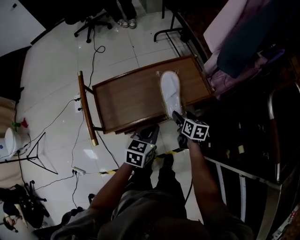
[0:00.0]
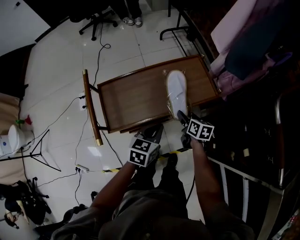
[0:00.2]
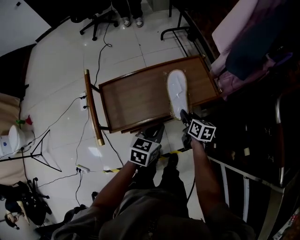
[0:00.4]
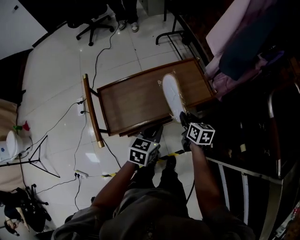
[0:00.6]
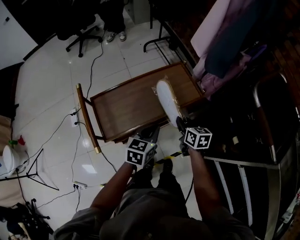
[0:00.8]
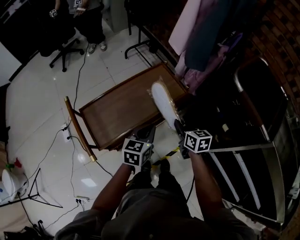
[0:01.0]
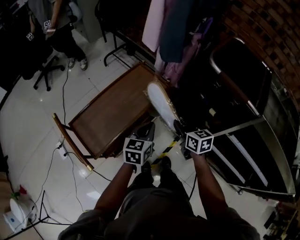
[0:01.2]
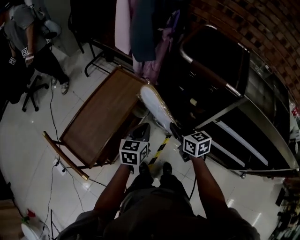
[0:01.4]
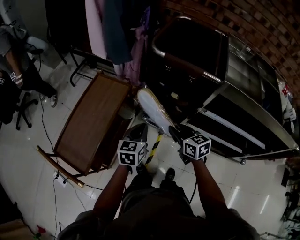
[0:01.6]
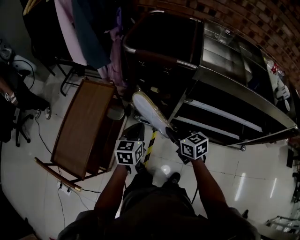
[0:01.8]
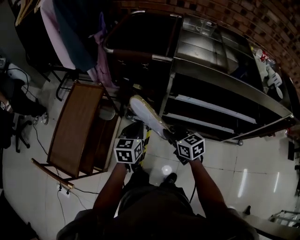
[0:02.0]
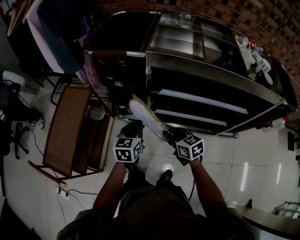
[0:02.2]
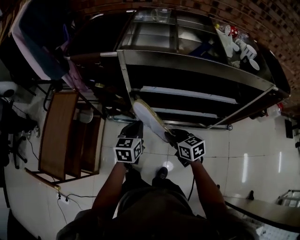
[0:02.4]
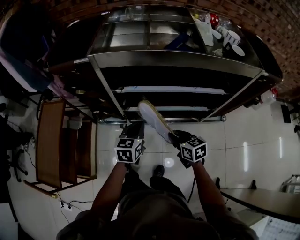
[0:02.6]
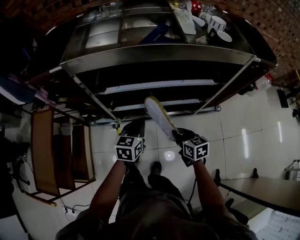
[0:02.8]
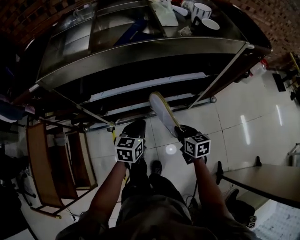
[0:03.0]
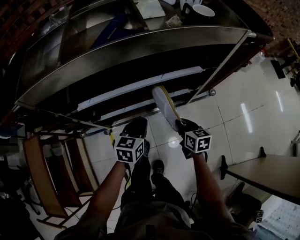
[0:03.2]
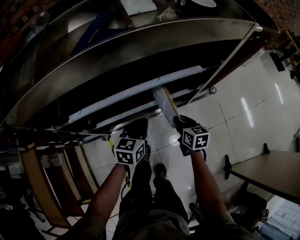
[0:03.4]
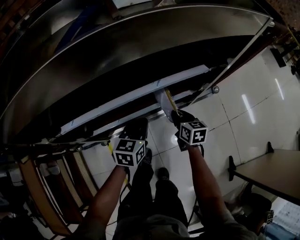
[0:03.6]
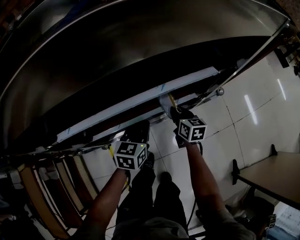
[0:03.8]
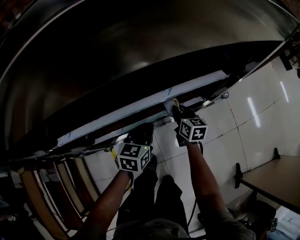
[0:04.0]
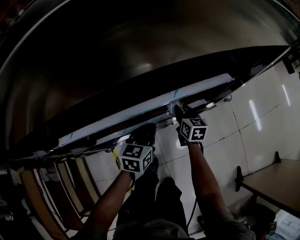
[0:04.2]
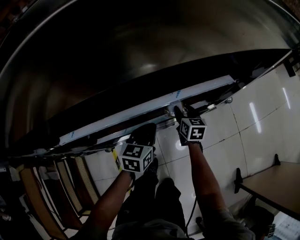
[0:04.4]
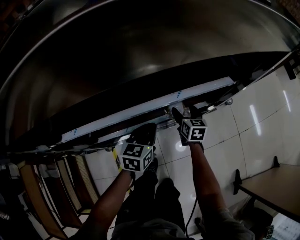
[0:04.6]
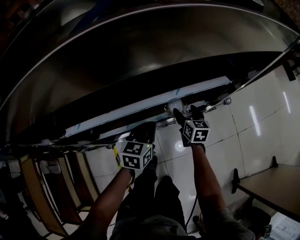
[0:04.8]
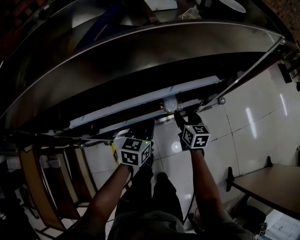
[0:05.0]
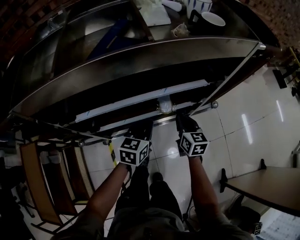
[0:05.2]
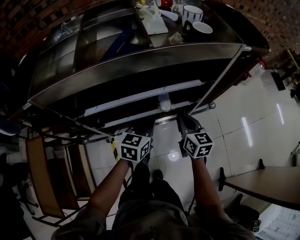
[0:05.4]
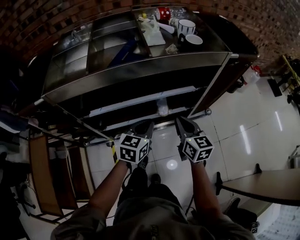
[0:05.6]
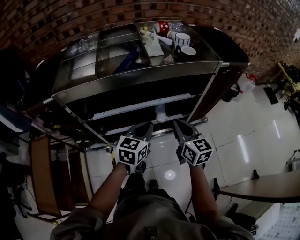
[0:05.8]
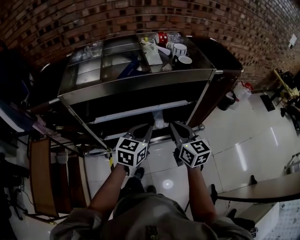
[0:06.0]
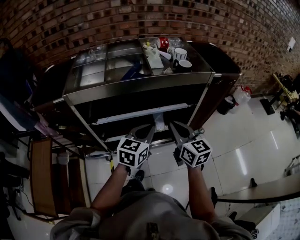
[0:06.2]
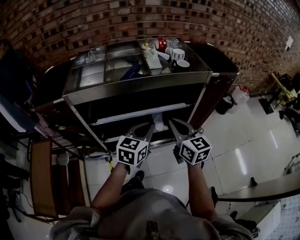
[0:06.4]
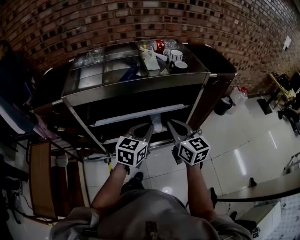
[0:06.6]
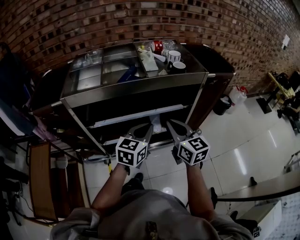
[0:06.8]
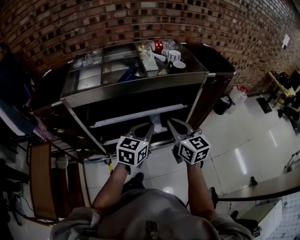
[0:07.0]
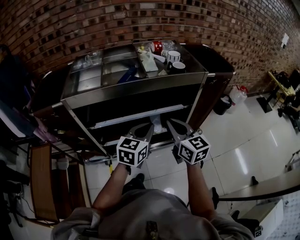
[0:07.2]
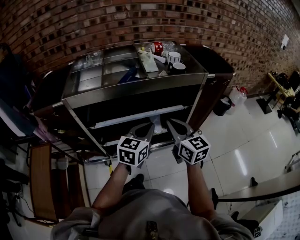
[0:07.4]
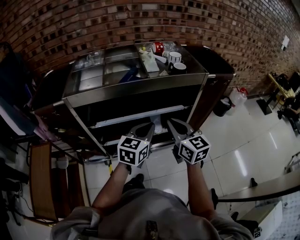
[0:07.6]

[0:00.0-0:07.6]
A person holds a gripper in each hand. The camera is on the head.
0:00.0 to 0:01.6: The left gripper changes place by about 20 cm, and turns by about 40 degrees. Meanwhile the right gripper changes place by approximately 35 cm, changes its angle by some 30 degrees, and closes up.
0:01.6 to 0:03.0: Both grippers are carried some 50 cm. The left gripper changes its angle by about 40 degrees. Meanwhile the right gripper swivels about 40 degrees.
0:03.0 to 0:04.6: The left gripper shifts about 25 cm downward and forward. The right gripper moves forward and downward, about 30 cm, swivels roughly 20 degrees, and opens its fingers.
0:04.6 to 0:06.0: Both grippers move upward and backward, about 50 cm. The right gripper changes its angle by some 30 degrees, and closes its fingers.
0:06.0 to 0:07.6: There are only small adjustments of the grippers.

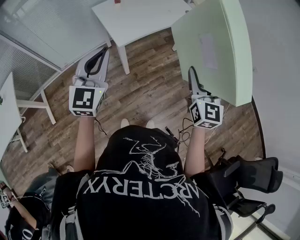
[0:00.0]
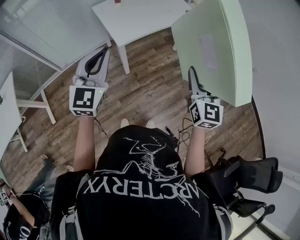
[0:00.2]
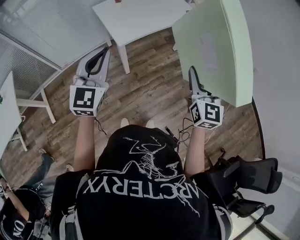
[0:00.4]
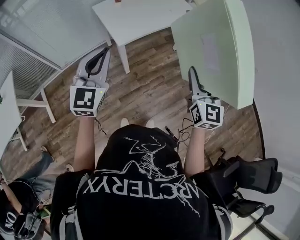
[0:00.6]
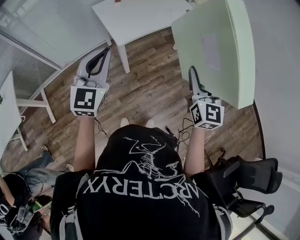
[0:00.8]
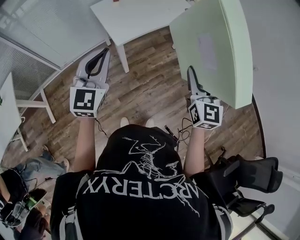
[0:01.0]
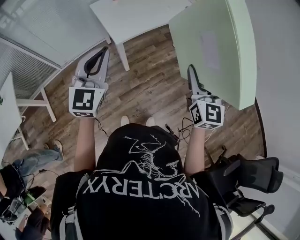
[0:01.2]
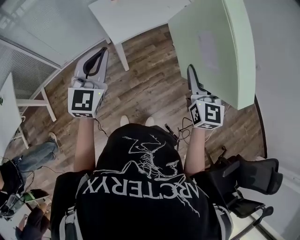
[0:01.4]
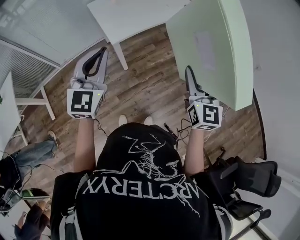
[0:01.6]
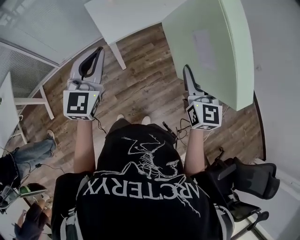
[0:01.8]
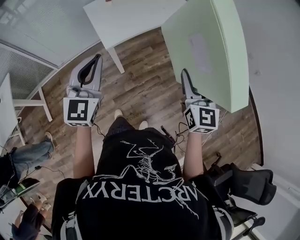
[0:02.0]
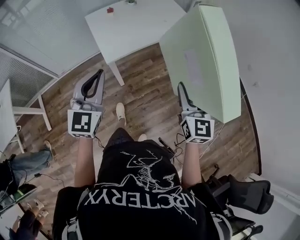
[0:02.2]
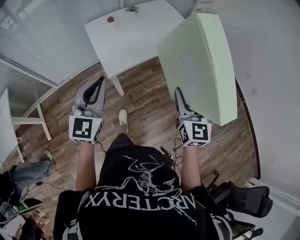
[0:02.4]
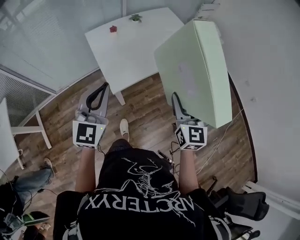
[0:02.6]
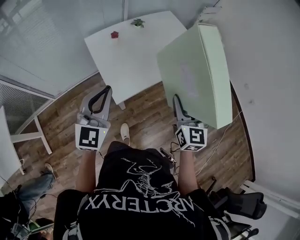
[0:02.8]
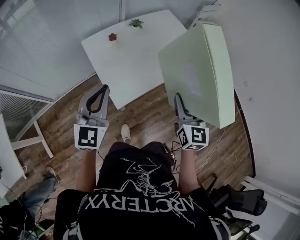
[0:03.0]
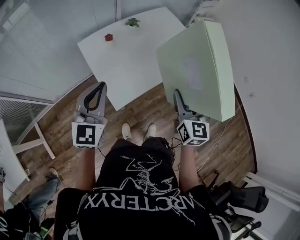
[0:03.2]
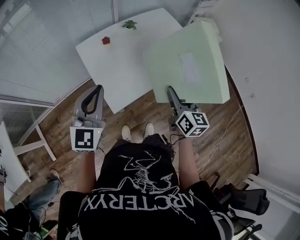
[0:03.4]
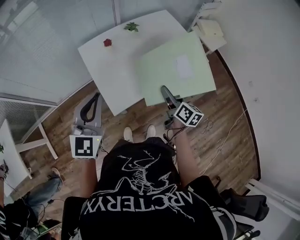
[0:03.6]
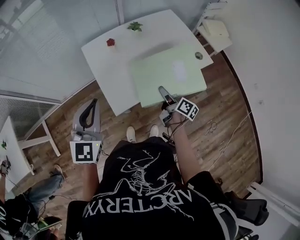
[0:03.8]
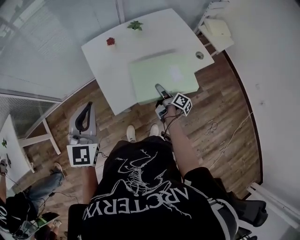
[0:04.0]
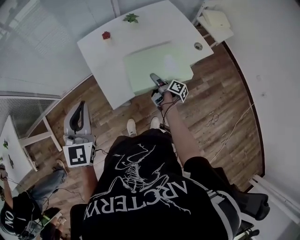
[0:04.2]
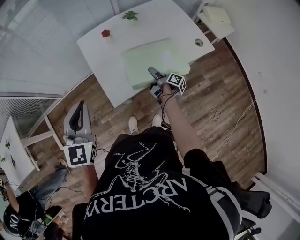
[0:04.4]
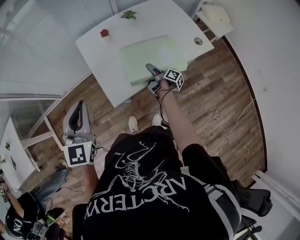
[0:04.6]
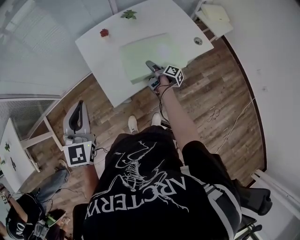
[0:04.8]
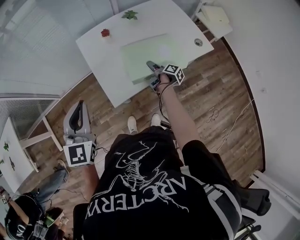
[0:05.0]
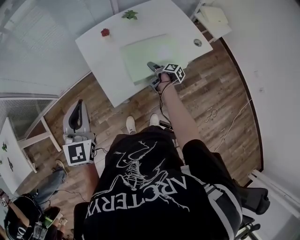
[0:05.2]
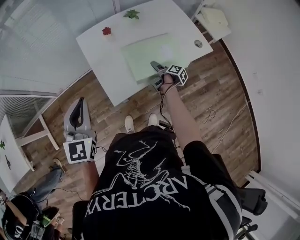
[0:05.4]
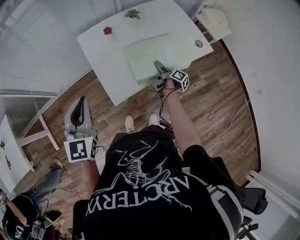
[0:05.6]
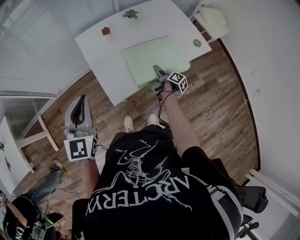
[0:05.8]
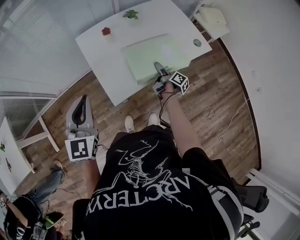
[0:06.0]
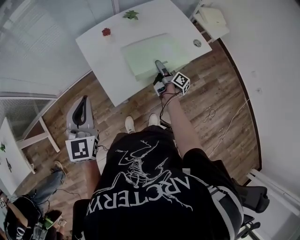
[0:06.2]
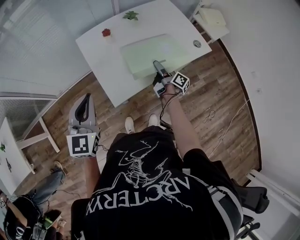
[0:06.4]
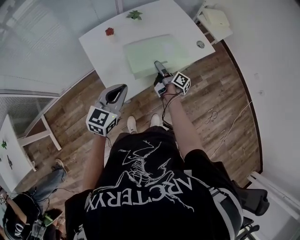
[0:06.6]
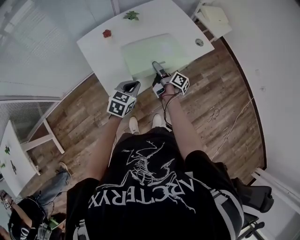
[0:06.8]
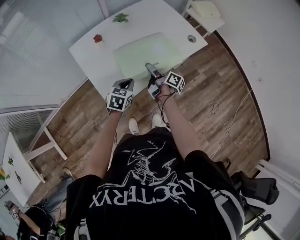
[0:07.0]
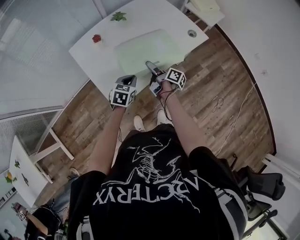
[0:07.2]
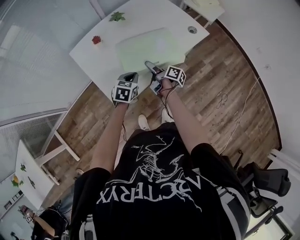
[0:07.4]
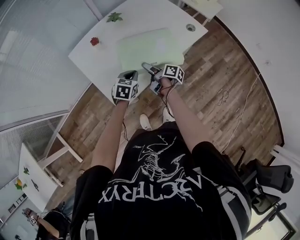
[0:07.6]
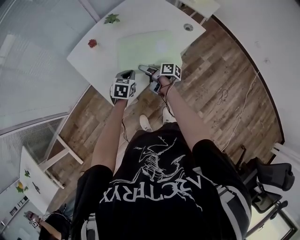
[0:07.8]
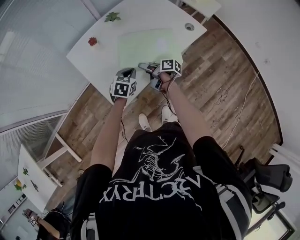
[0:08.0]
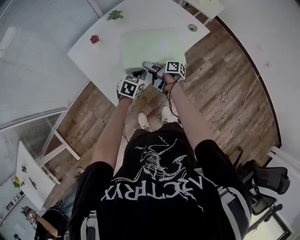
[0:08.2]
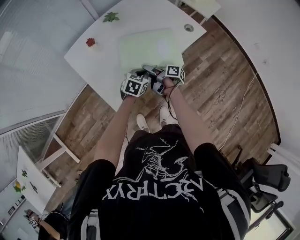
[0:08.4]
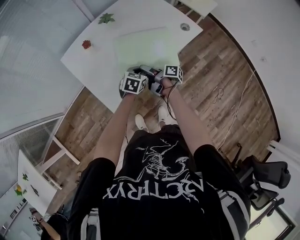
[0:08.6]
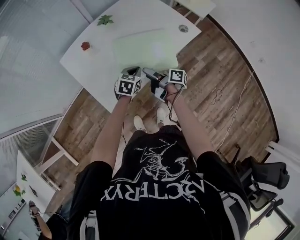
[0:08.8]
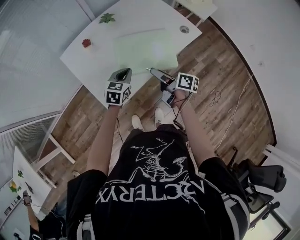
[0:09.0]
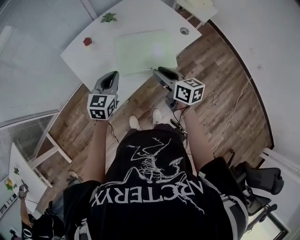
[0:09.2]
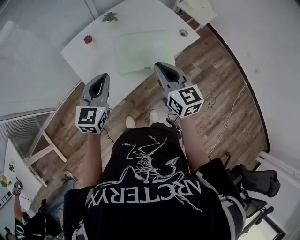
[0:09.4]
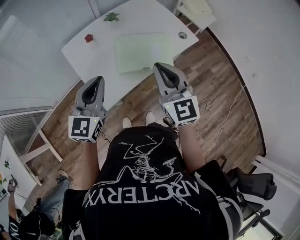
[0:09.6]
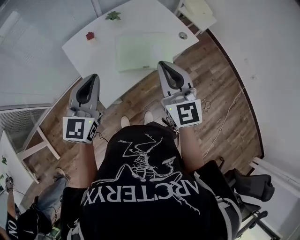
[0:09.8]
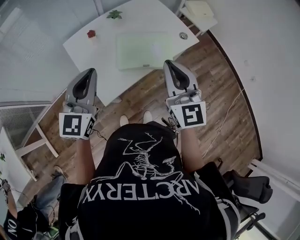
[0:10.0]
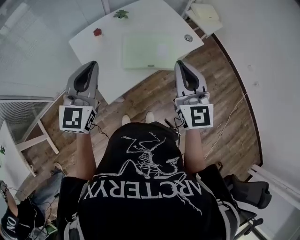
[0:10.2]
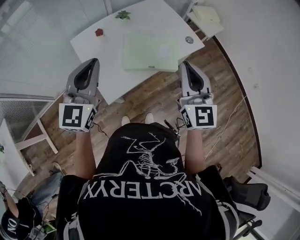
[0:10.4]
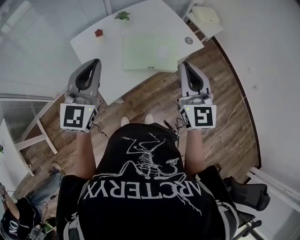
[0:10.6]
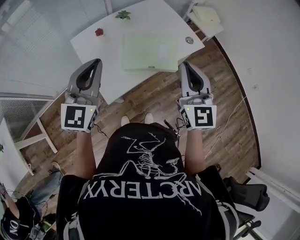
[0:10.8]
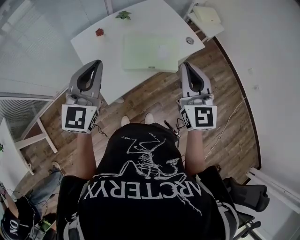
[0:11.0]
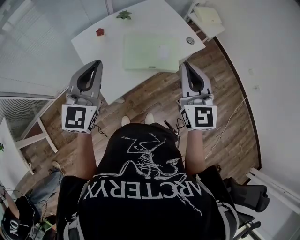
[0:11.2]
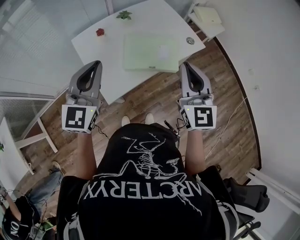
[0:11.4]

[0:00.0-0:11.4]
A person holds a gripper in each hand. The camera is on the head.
0:00.0 to 0:01.4: The grippers make only small movements.
0:01.4 to 0:02.8: The grippers both shift forward by roughly 25 cm.
0:02.8 to 0:04.2: The right gripper goes roughly 35 cm downward and forward, and rolls clockwise, seen from behind, by about 90 degrees. Meanwhile the left gripper shifts by some 5 cm.
0:04.2 to 0:05.6: The grippers make only small movements.
0:05.6 to 0:07.2: The left gripper travels downward, to the right and forward by about 35 cm, and tilts its fingers about 30 degrees downward.
0:07.2 to 0:08.6: The left gripper moves to the right and forward, some 10 cm.
0:08.6 to 0:10.0: The left gripper shifts about 40 cm upward and to the left, and angles its fingers upward, by some 40 degrees; the right gripper heads upward, covering some 35 cm, twists about 100 degrees counterclockwise, seen from behind, and closes up.
0:10.0 to 0:11.4: The grippers make only small movements.

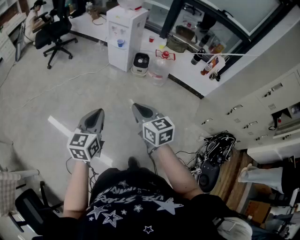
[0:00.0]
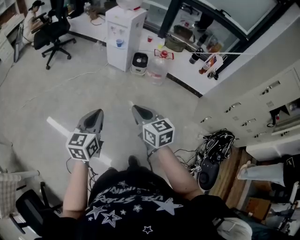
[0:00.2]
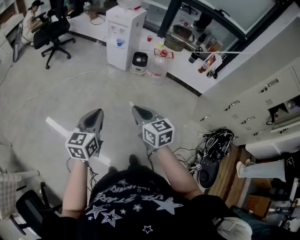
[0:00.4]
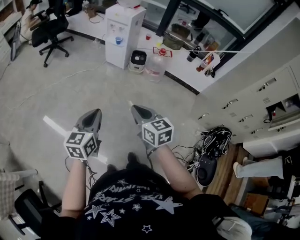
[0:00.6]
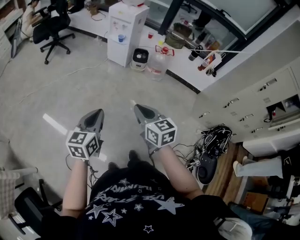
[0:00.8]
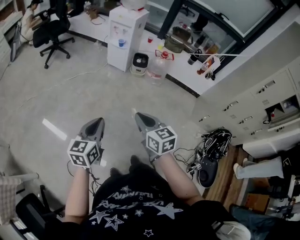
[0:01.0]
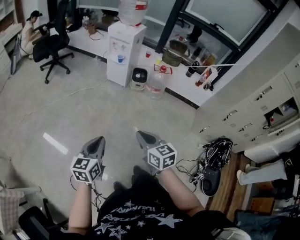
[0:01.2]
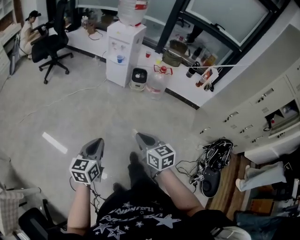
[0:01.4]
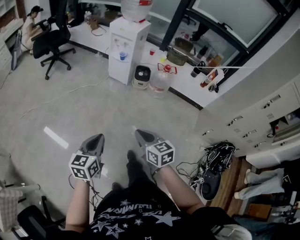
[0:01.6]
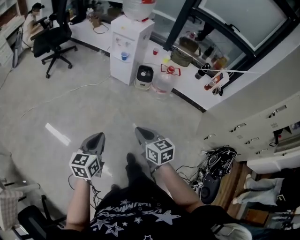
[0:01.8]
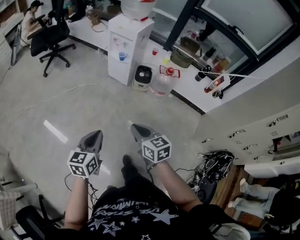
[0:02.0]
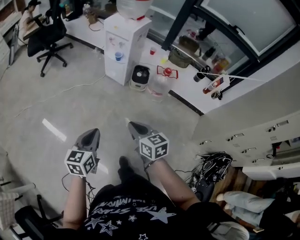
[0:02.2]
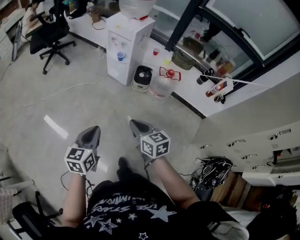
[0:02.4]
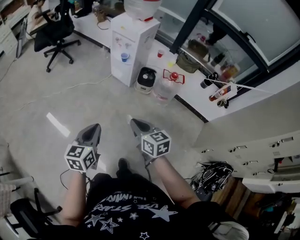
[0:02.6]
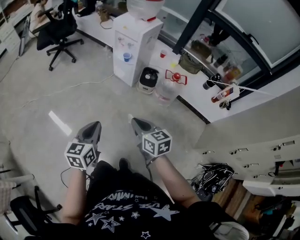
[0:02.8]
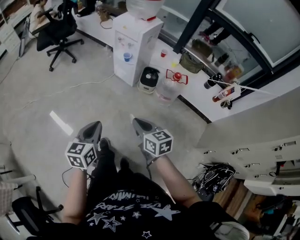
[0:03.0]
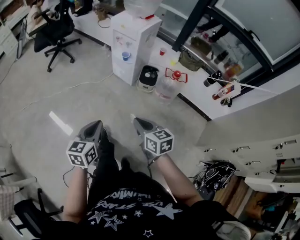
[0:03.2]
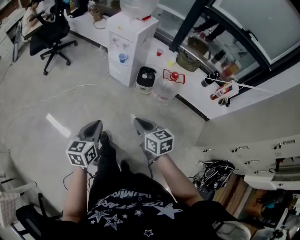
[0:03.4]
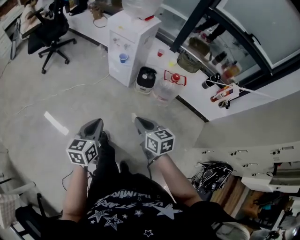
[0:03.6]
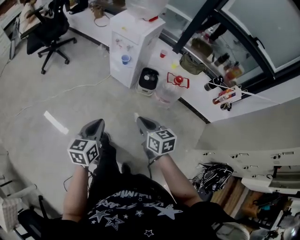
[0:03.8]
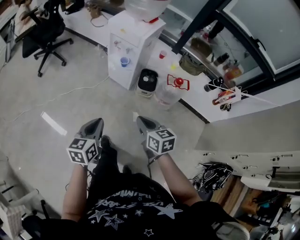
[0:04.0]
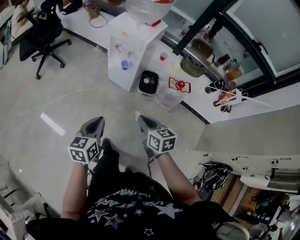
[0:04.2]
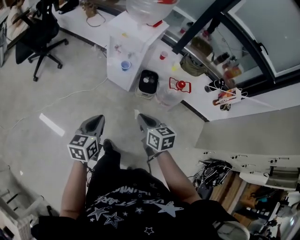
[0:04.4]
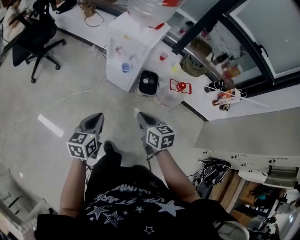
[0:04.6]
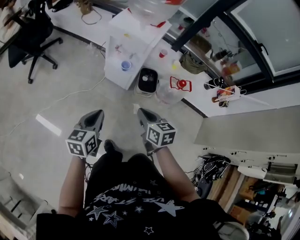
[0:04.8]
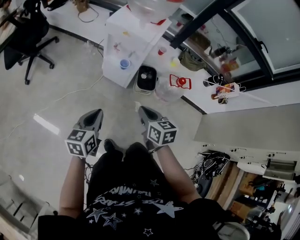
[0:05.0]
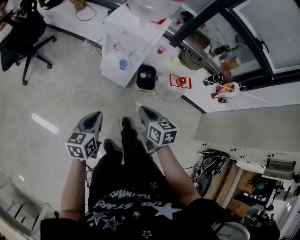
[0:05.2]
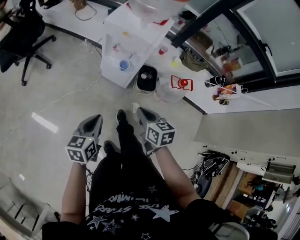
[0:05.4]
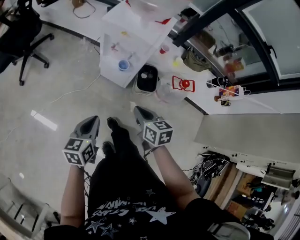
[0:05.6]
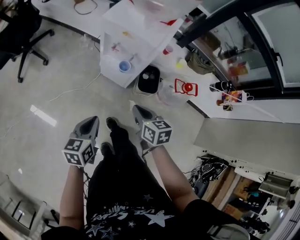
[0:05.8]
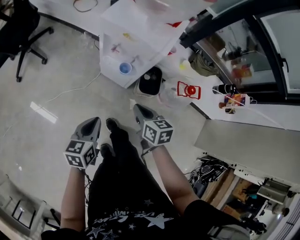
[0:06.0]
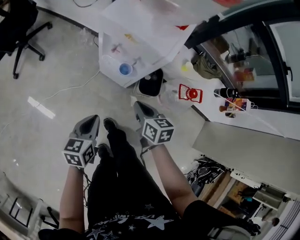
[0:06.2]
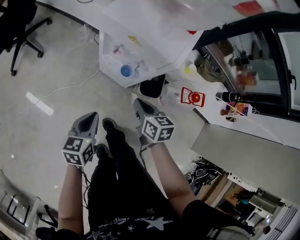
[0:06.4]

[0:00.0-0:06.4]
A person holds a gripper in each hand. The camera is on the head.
0:00.0 to 0:01.6: The two grippers go approximately 10 cm to the left and downward.
0:01.6 to 0:03.2: Both grippers travel together forward and to the right, roughly 25 cm.
0:03.2 to 0:04.8: The two grippers go roughly 30 cm forward.
0:04.8 to 0:06.4: Both grippers move forward and downward, approximately 30 cm.
